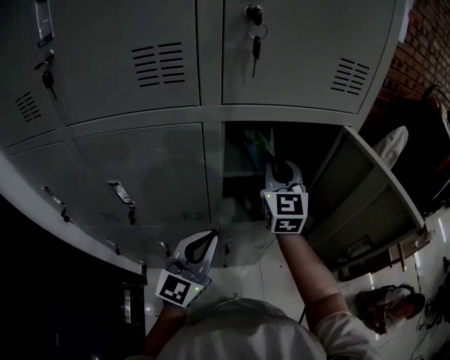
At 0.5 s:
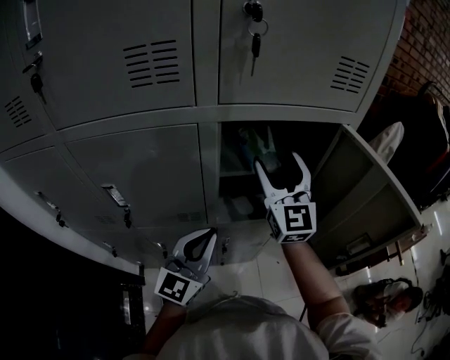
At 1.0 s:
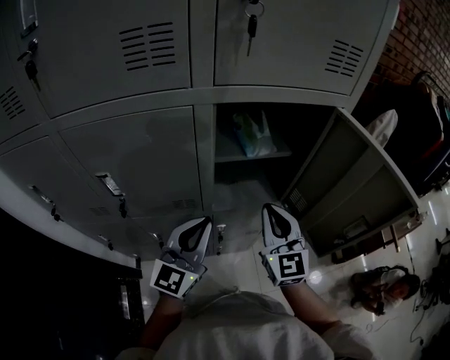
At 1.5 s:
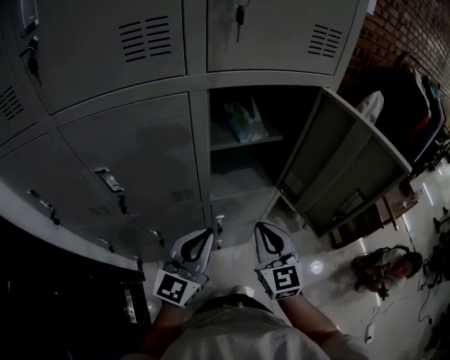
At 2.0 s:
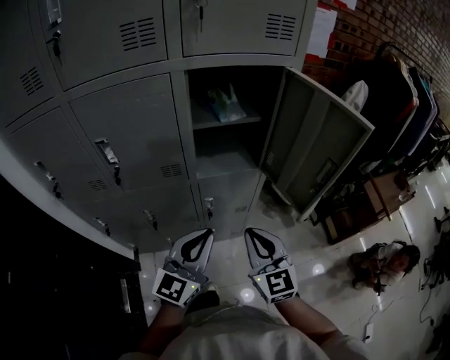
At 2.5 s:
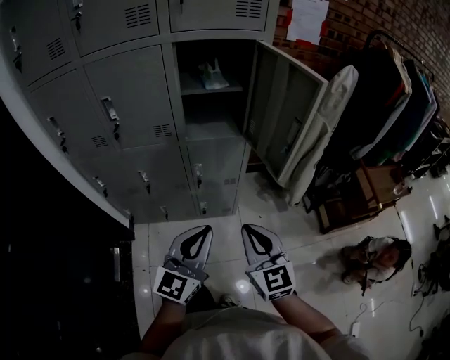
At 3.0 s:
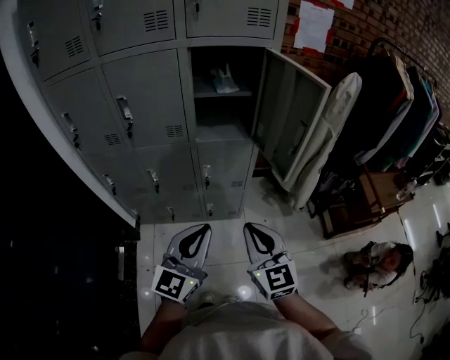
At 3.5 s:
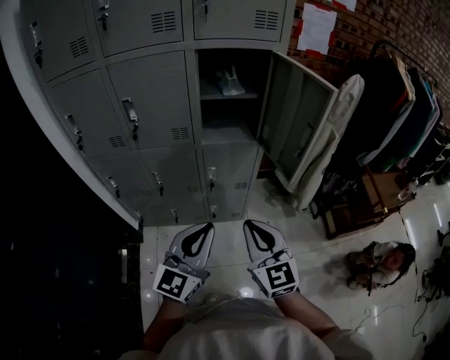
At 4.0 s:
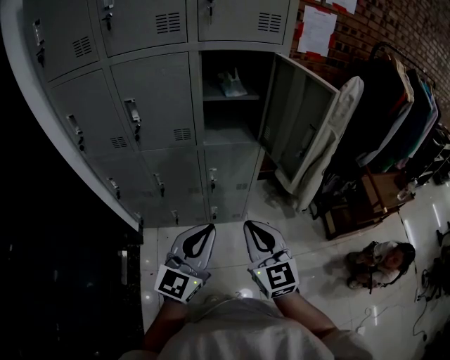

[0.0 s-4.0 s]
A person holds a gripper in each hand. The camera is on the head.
0.0 to 2.0 s: The left gripper heads backward and to the right, covering approximately 15 cm, while the right gripper heads backward and downward, covering about 35 cm, and opens, then closes again.
2.0 to 4.0 s: Both grippers move backward, some 15 cm.

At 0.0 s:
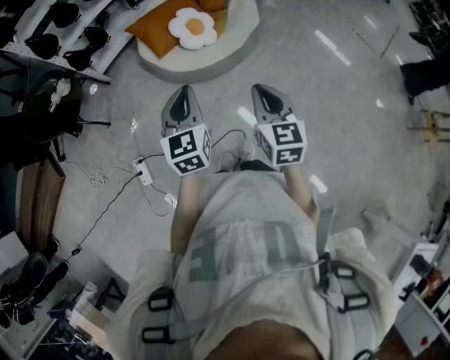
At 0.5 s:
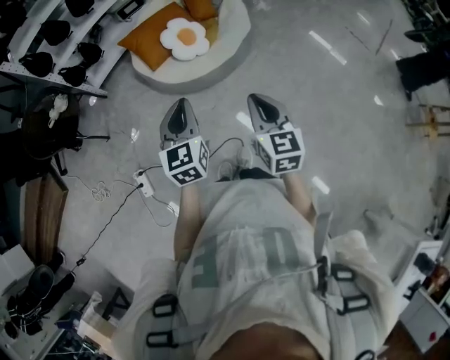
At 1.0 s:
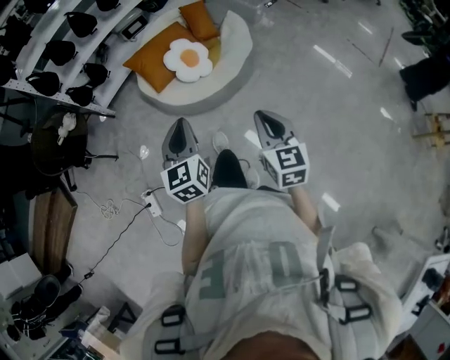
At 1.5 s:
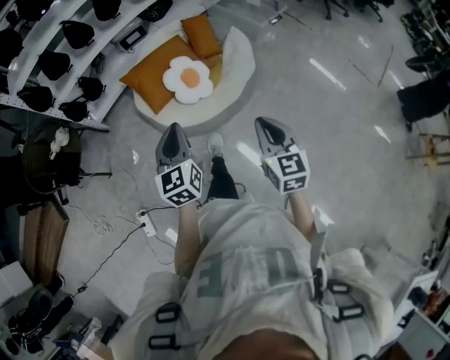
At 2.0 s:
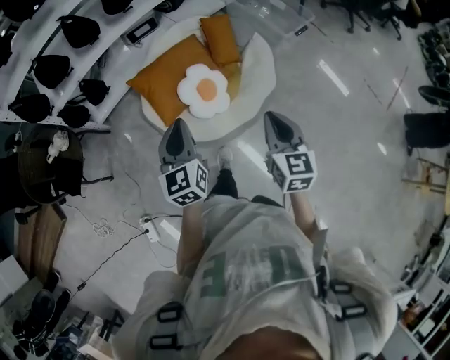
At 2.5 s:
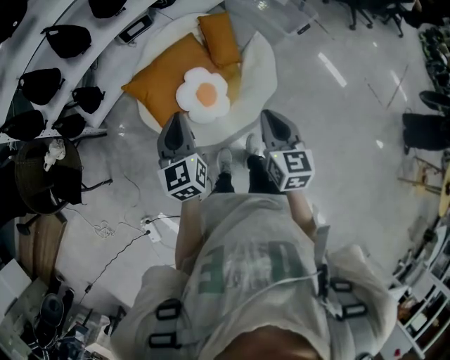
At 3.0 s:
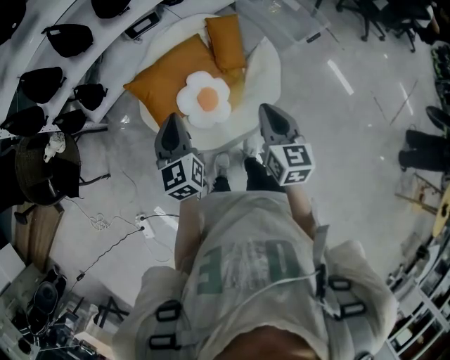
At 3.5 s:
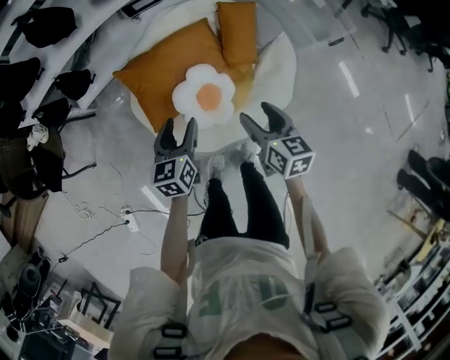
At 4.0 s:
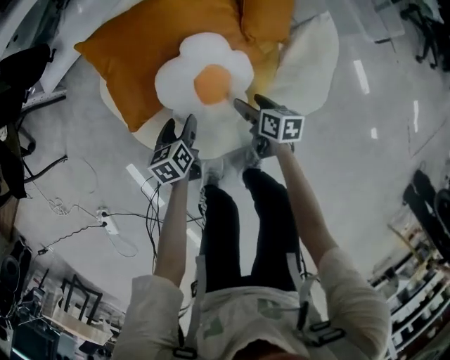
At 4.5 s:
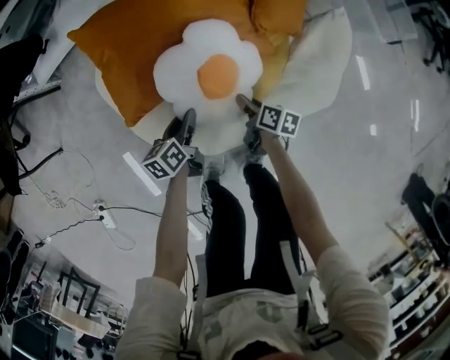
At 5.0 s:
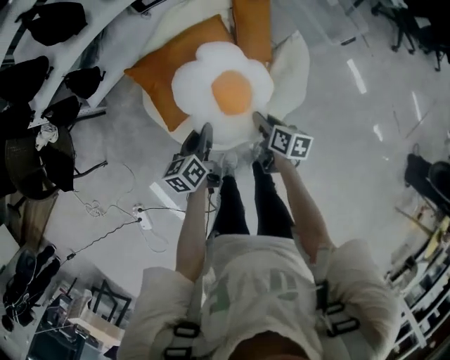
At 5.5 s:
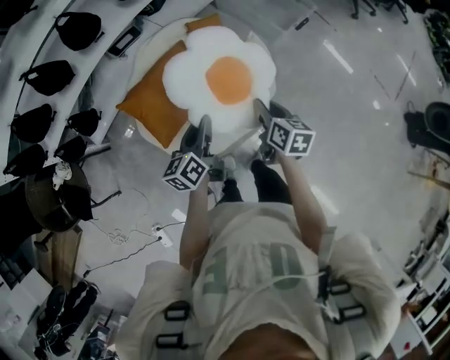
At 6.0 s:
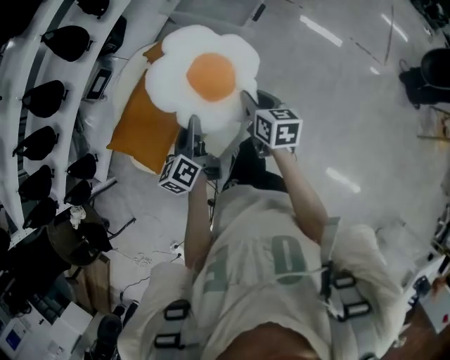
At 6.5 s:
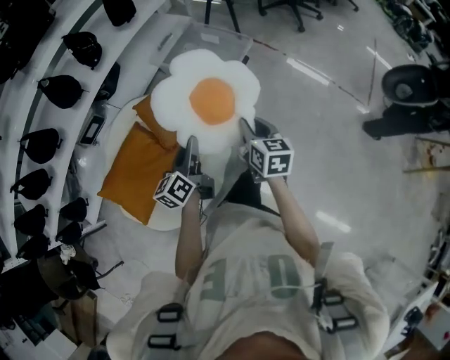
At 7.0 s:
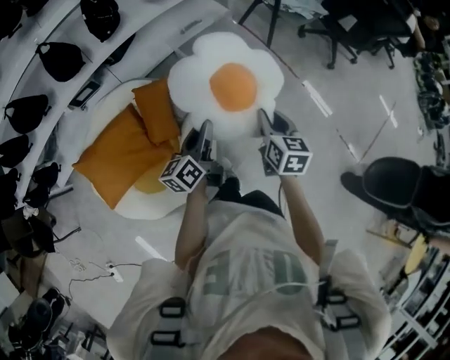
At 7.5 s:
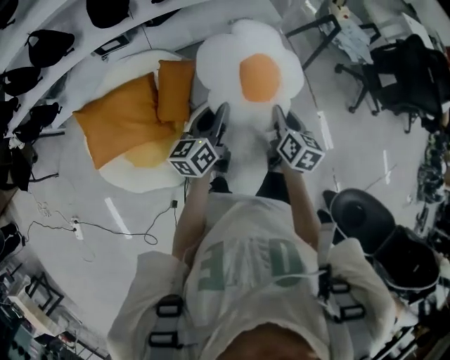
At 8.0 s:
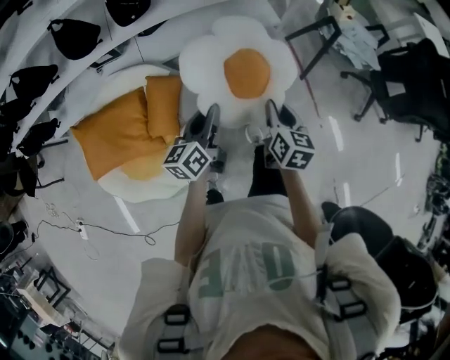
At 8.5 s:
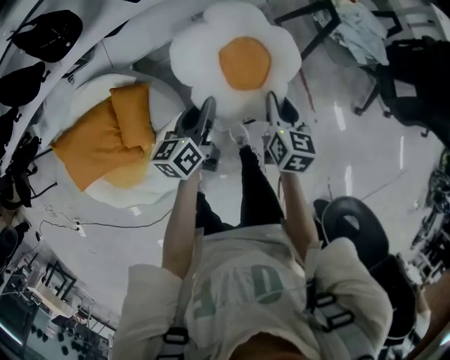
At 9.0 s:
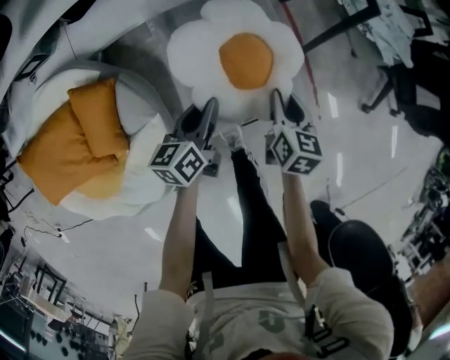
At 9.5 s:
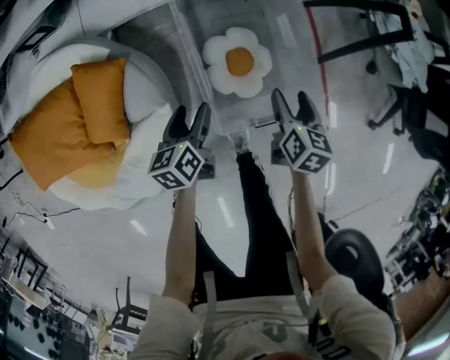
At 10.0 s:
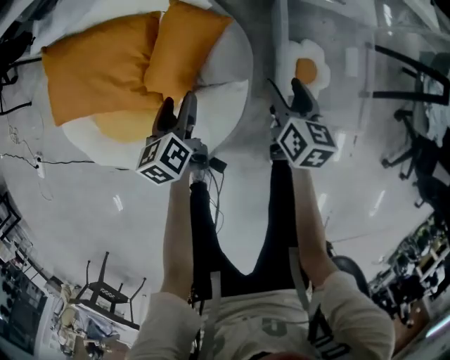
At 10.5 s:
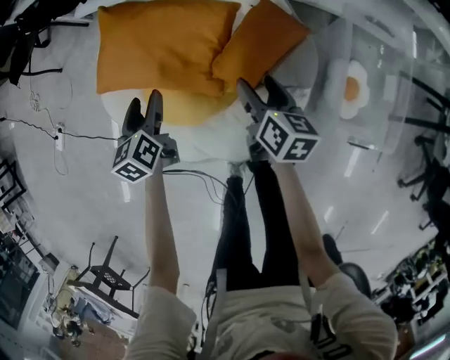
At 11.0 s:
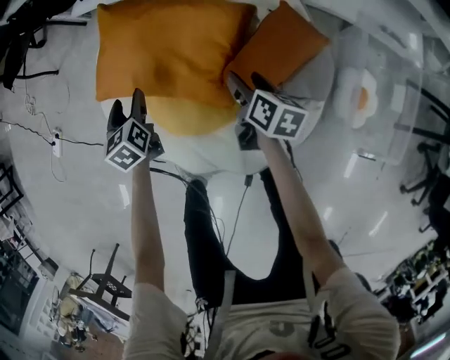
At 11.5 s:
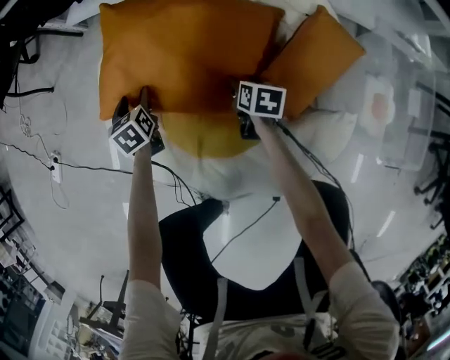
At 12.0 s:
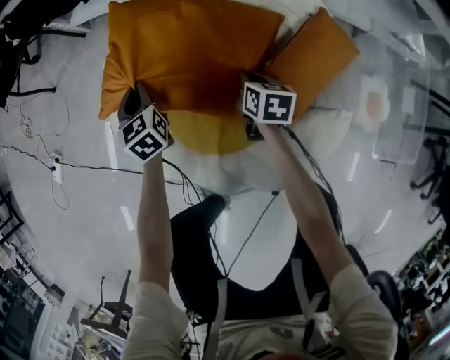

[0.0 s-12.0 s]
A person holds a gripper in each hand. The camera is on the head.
0.0 to 2.0 s: Both grippers move forward, approximately 40 cm.
2.0 to 4.0 s: The right gripper shifts some 60 cm downward and forward, turns by about 50 degrees, and opens its fingers, while the left gripper heads downward, covering approximately 60 cm, tips its fingers downward by roughly 30 degrees, and opens.
4.0 to 6.0 s: The two grippers go approximately 50 cm upward. The right gripper turns by some 40 degrees, and closes. The left gripper angles its fingers upward, by roughly 30 degrees, and closes up.
6.0 to 8.0 s: The two grippers travel together, about 50 cm. The left gripper turns by roughly 30 degrees. The right gripper turns by roughly 30 degrees.
8.0 to 10.0 s: Both grippers move downward, approximately 30 cm. The right gripper turns by some 20 degrees, and opens. The left gripper turns by some 40 degrees, and opens.
10.0 to 12.0 s: The two grippers travel together, some 50 cm. The left gripper rotates about 40 degrees, and closes its fingers, while the right gripper closes up.

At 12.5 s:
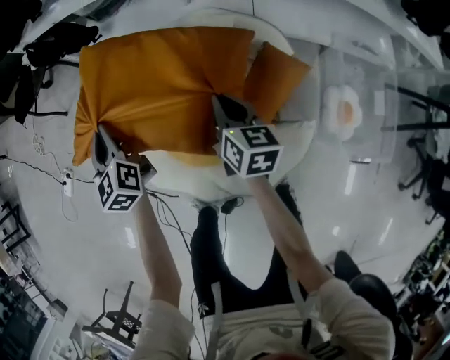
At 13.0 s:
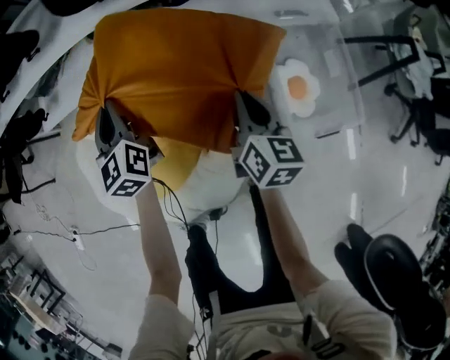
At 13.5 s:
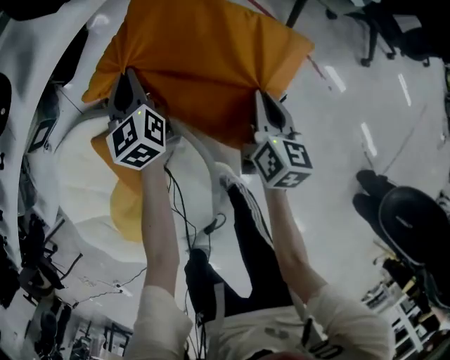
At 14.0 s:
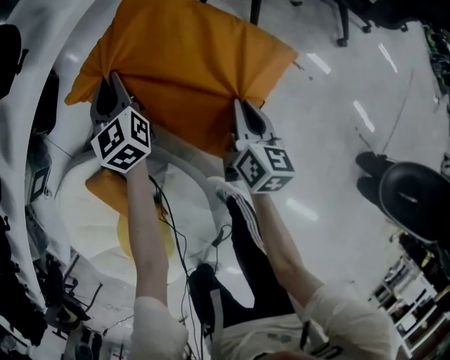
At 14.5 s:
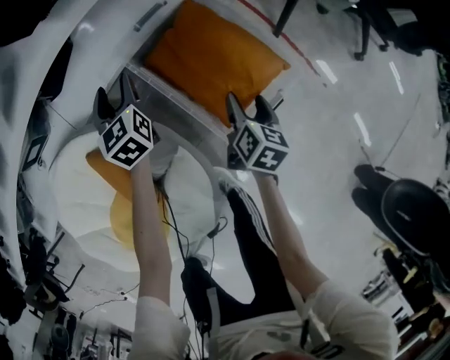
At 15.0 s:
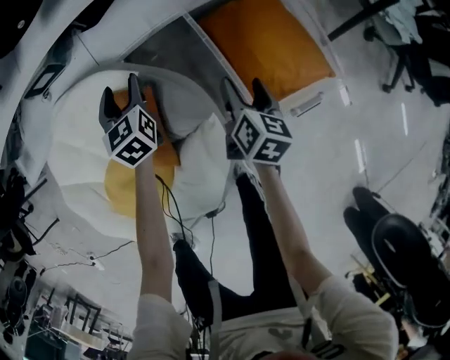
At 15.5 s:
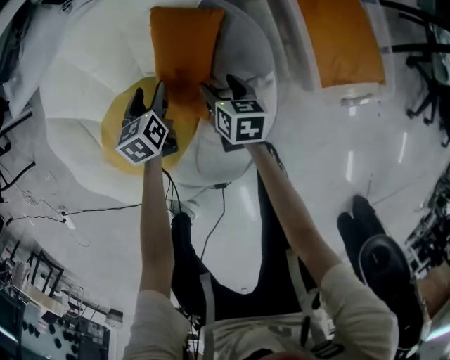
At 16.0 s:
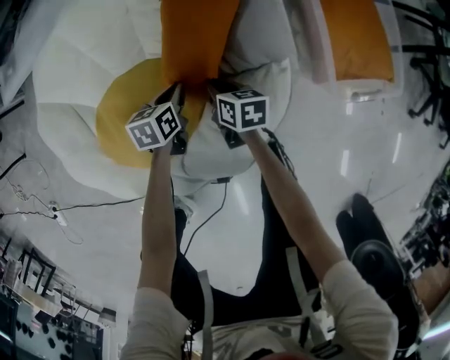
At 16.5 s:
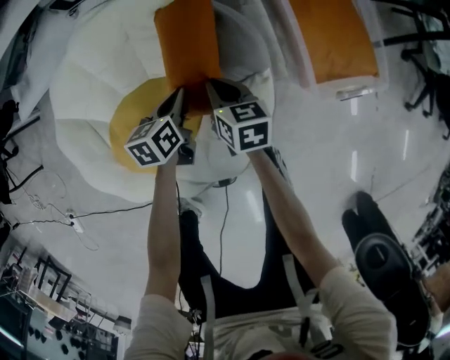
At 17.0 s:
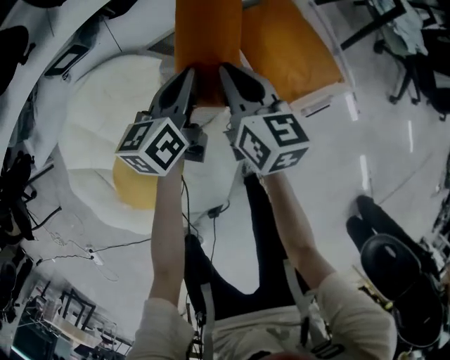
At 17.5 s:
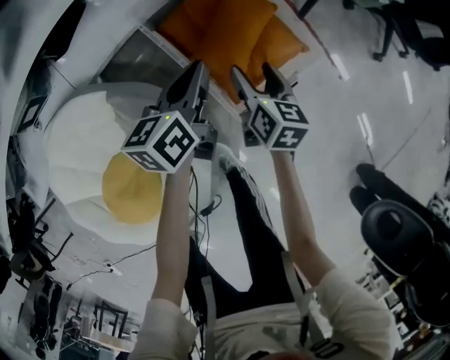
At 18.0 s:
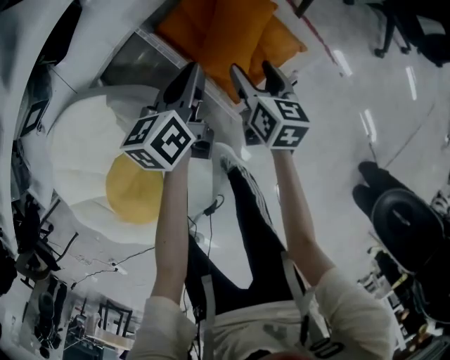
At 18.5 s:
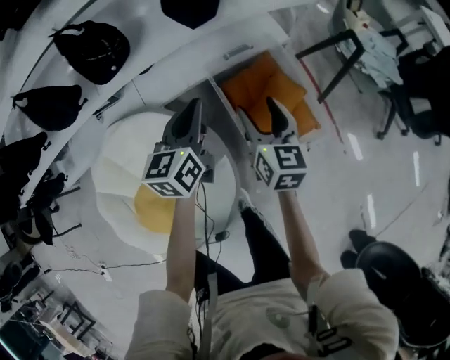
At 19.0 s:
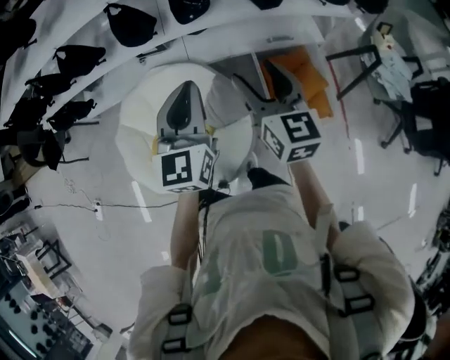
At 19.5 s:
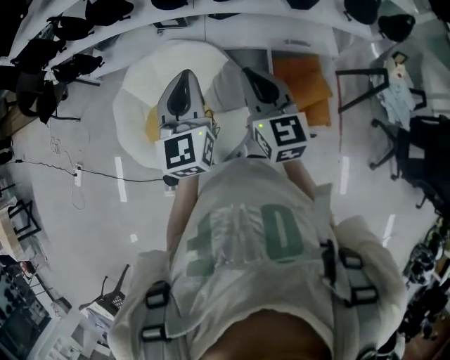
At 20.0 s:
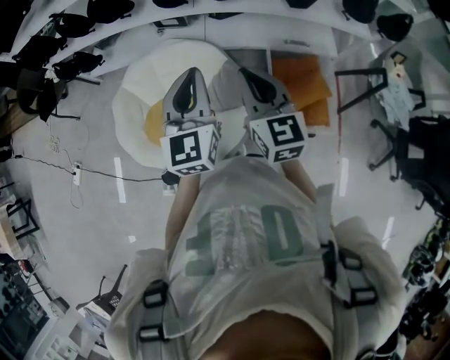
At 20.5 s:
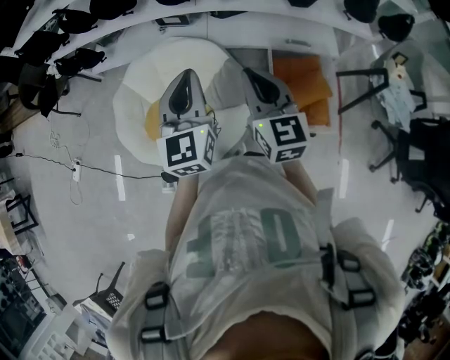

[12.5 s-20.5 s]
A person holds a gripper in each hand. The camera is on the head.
12.5 to 14.5 s: Both grippers are carried about 70 cm. The right gripper rotates about 70 degrees, and opens its fingers; the left gripper rotates about 60 degrees, and opens its fingers.
14.5 to 16.5 s: The right gripper moves approximately 25 cm downward and comes back, swivels some 60 degrees, and closes, while the left gripper moves about 40 cm, rotates approximately 40 degrees, and closes up.
16.5 to 18.5 s: The left gripper goes up and down, some 40 cm each way, reversing 2 times, and rotates about 30 degrees. The right gripper moves up and down over some 35 cm, changing direction 2 times, changes its angle by about 30 degrees, and opens.
18.5 to 20.5 s: The right gripper ends up approximately 35 cm from where it was, changes its angle by roughly 40 degrees, and closes up, while the left gripper moves approximately 40 cm, and rotates roughly 40 degrees.

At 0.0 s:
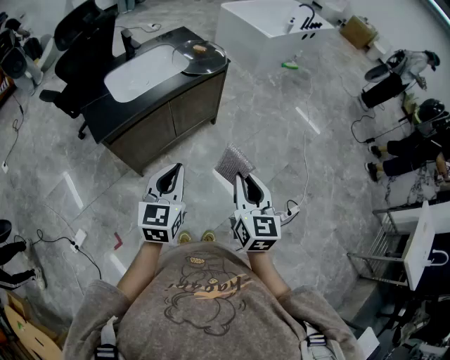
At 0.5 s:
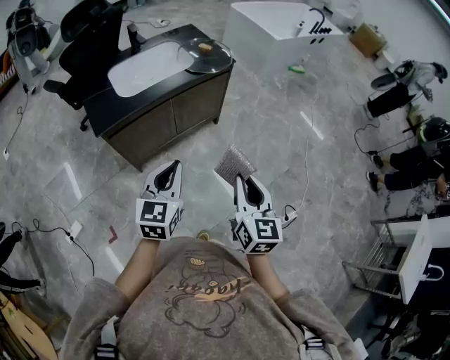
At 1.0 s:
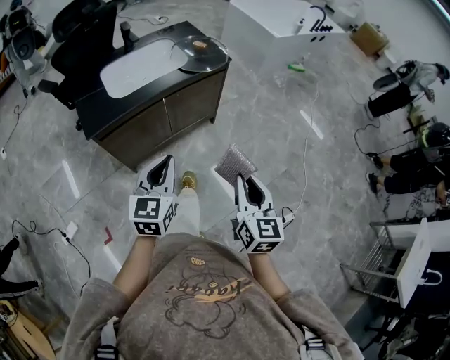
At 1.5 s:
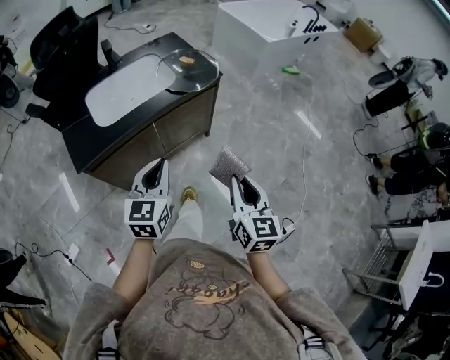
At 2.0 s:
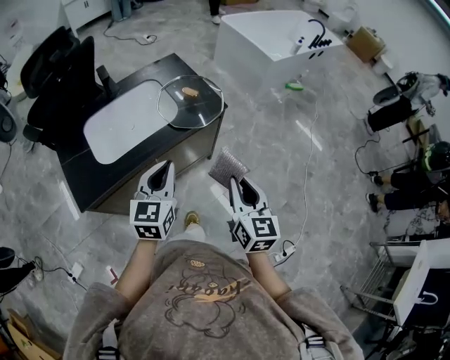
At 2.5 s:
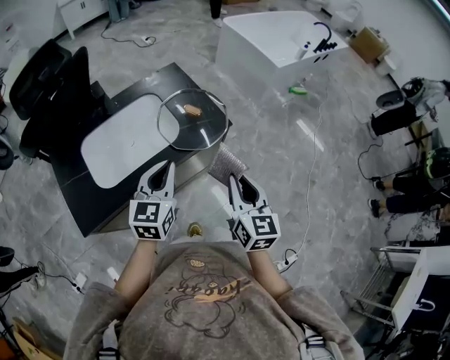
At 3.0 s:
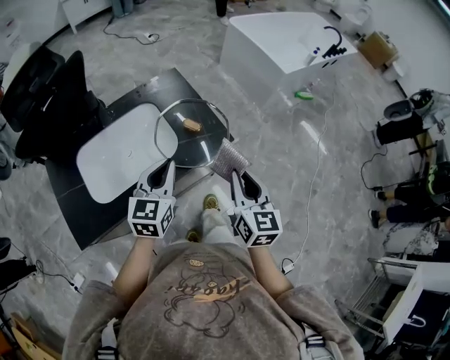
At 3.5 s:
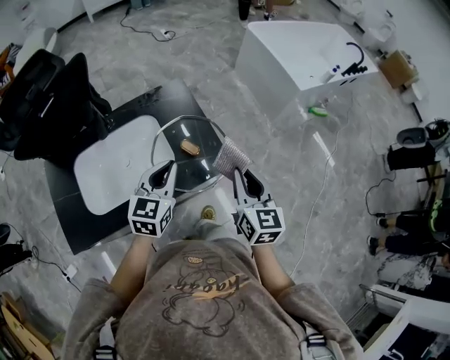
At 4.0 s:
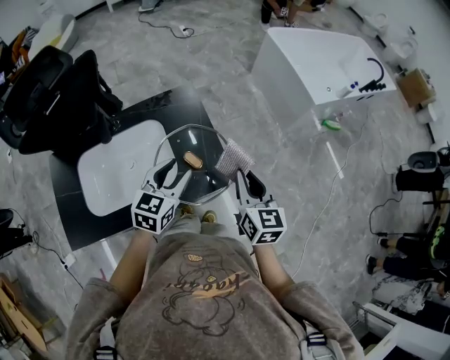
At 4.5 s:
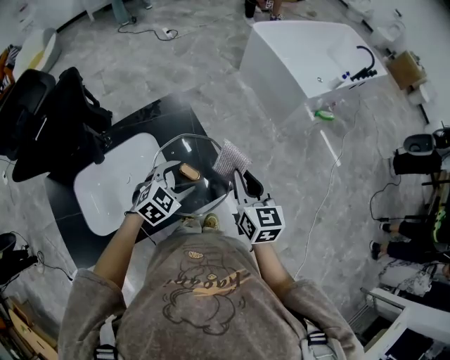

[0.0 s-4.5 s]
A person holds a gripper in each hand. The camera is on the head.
0.0 to 2.0 s: The two grippers go approximately 30 cm forward.
2.0 to 4.5 s: The two grippers go roughly 40 cm forward. The left gripper turns by approximately 40 degrees, and opens.
